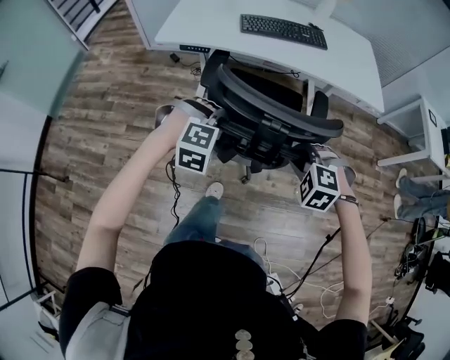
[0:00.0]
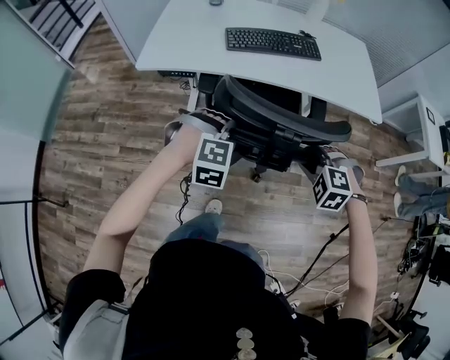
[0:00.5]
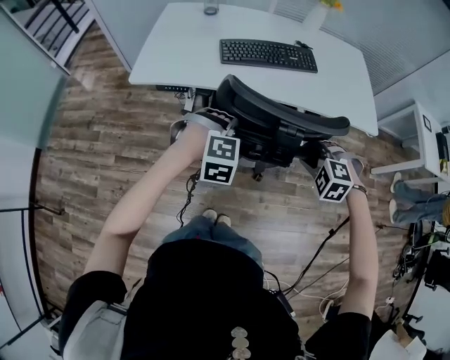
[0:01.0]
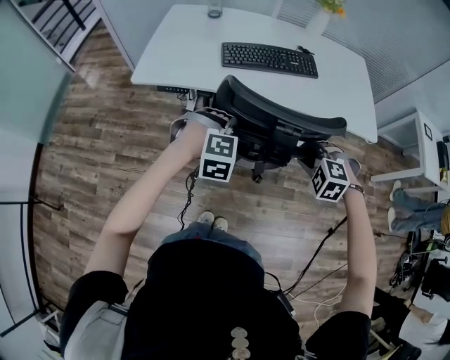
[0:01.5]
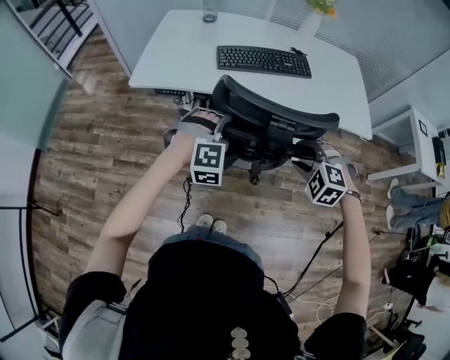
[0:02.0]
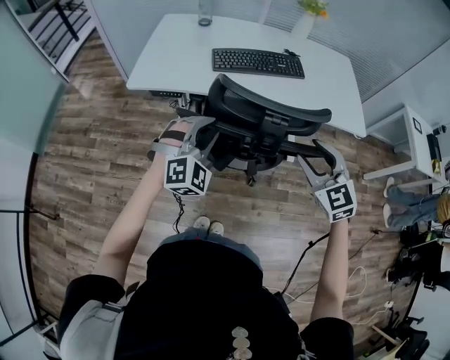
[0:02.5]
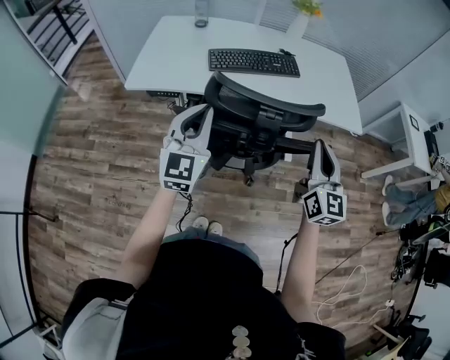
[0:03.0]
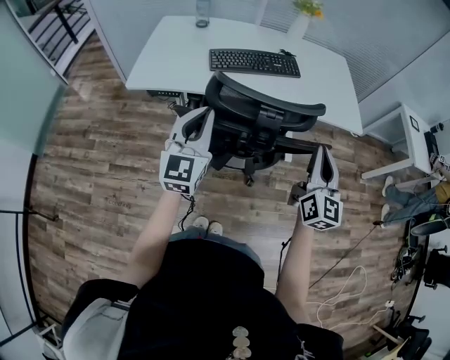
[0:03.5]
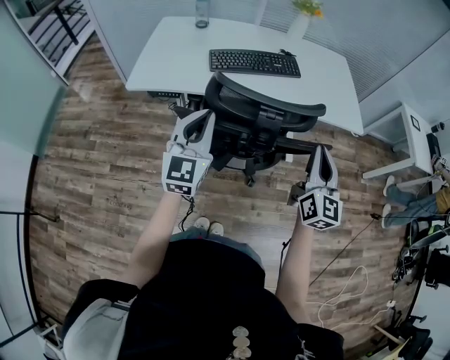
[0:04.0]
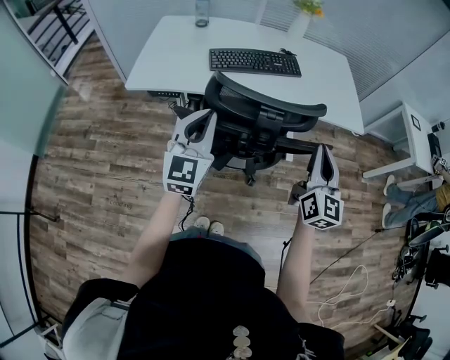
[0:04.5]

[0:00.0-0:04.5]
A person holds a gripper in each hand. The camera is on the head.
0:00.0 to 0:02.0: The two grippers go about 20 cm forward. The right gripper opens up.
0:02.0 to 0:04.5: The right gripper shifts about 15 cm upward and to the right, points its fingers some 60 degrees further upward, and closes. The left gripper moves upward, approximately 15 cm, twists about 60 degrees counterclockwise, seen from behind, and closes up.

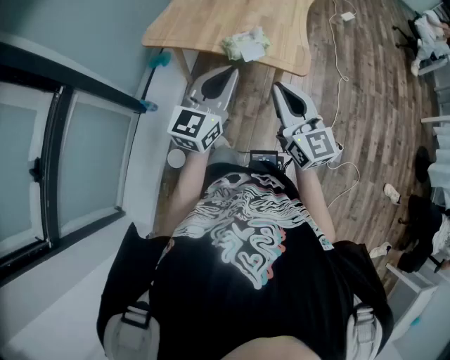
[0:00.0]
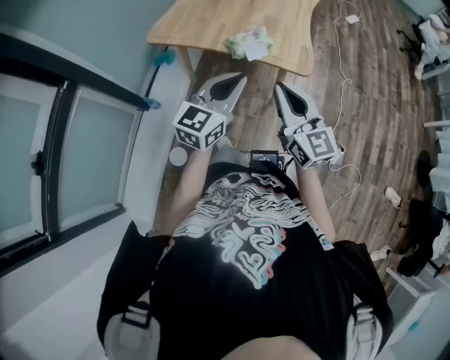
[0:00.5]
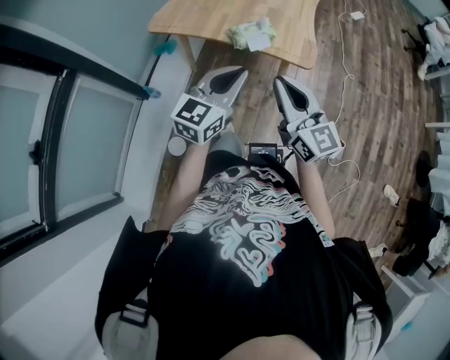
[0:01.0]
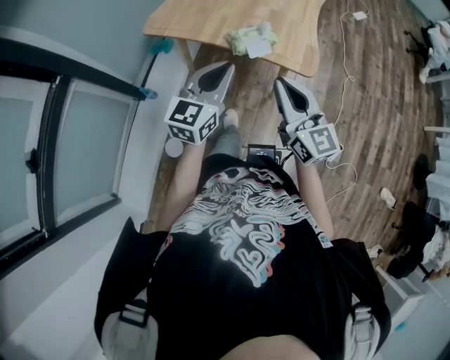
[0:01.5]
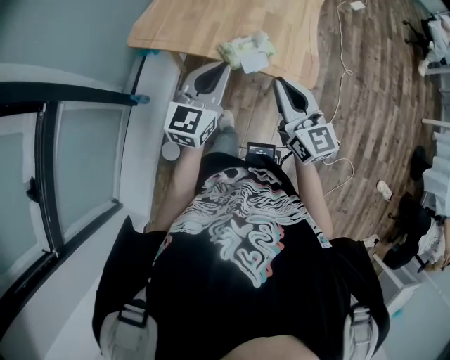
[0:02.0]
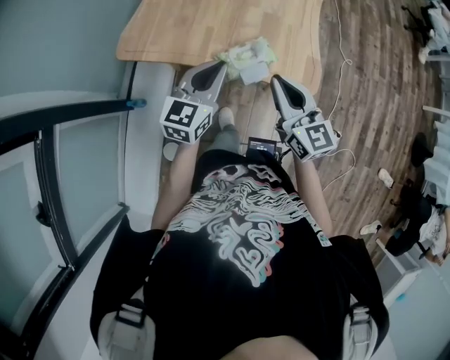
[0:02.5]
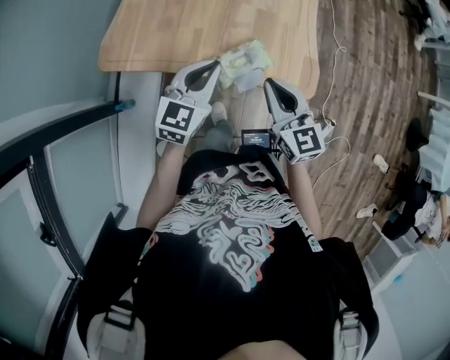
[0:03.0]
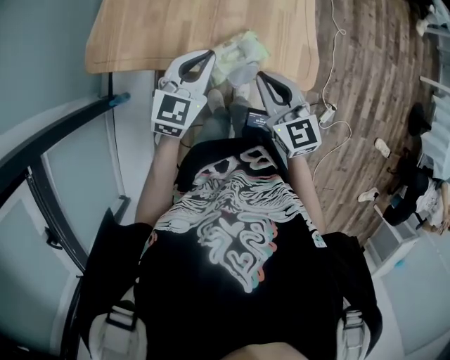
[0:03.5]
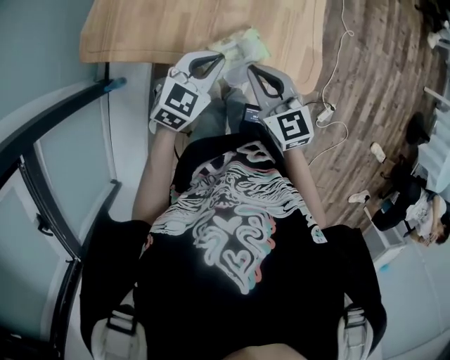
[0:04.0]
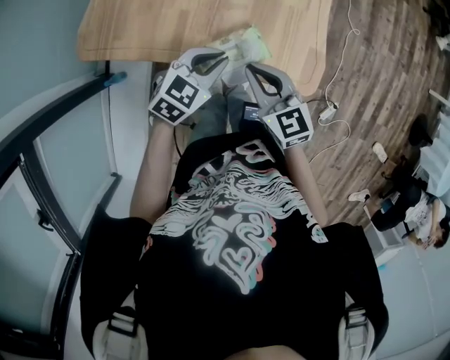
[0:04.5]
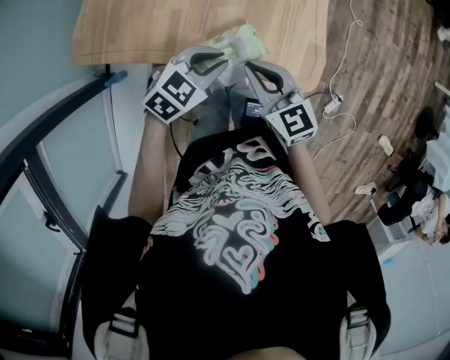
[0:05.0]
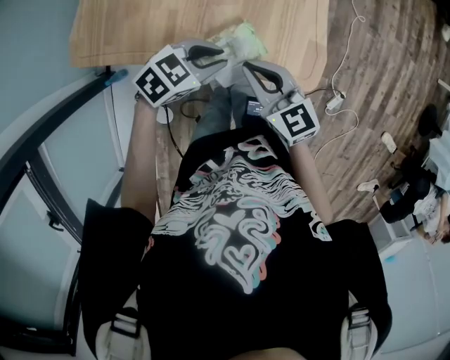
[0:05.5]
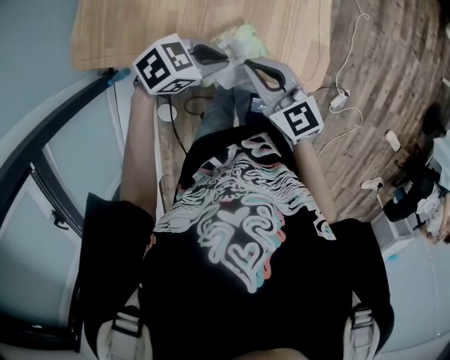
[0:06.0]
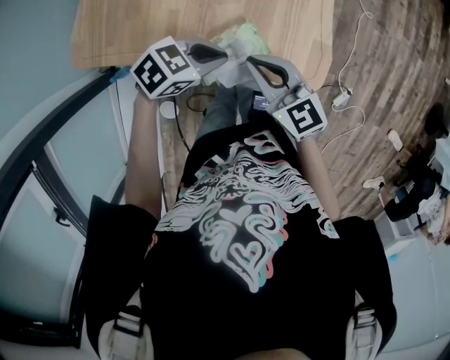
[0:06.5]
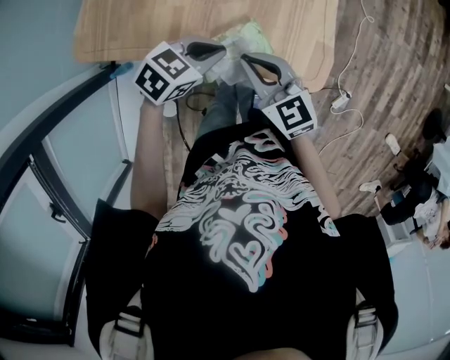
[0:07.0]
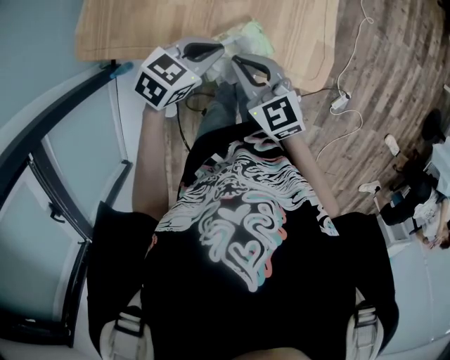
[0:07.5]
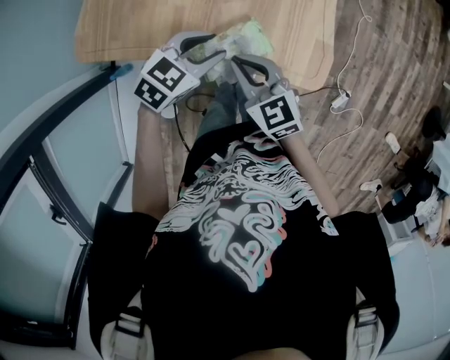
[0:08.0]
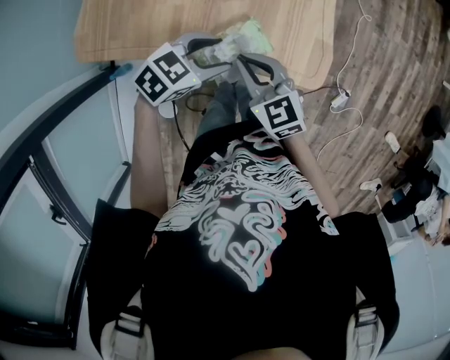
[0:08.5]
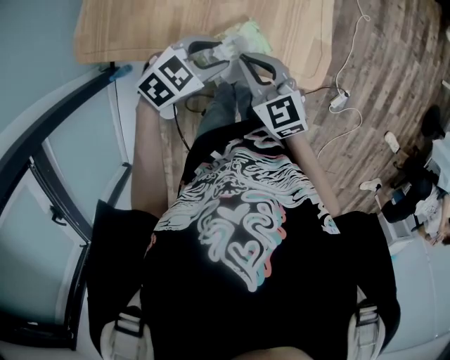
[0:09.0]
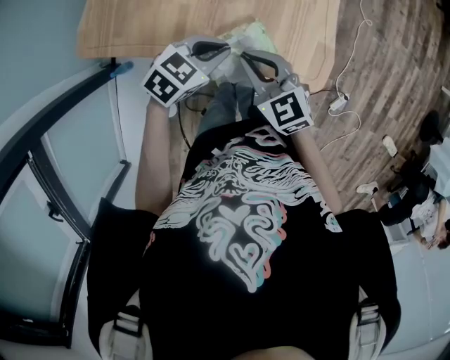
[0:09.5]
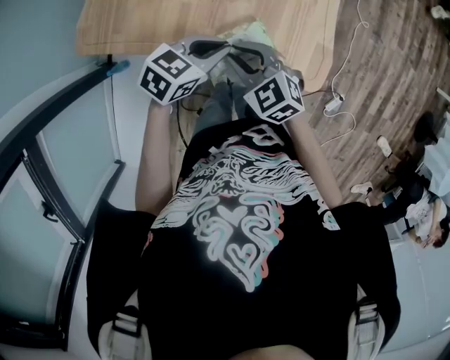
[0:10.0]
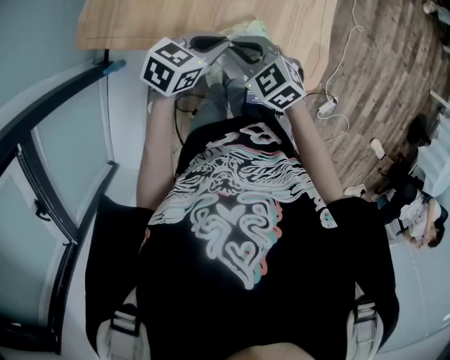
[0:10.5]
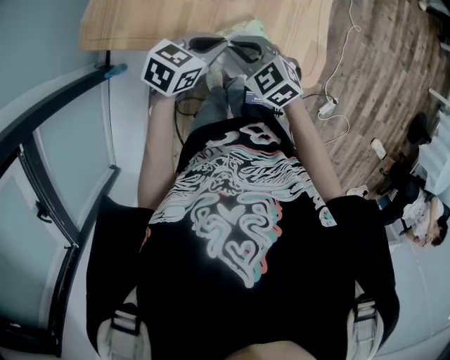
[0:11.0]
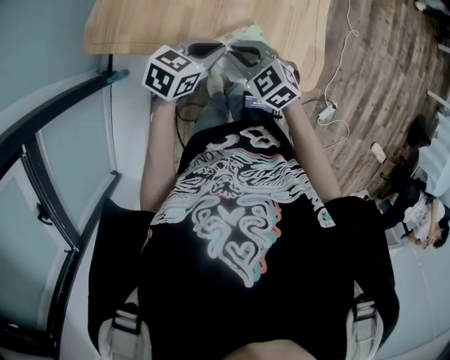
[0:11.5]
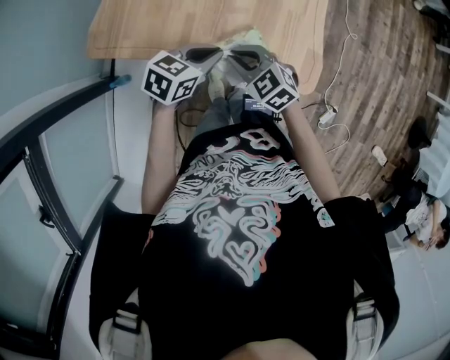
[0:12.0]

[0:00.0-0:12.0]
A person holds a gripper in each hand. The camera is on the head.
0:00.0 to 0:02.0: The left gripper moves forward and downward, some 15 cm, while the right gripper shifts approximately 15 cm forward.
0:02.0 to 0:04.0: The left gripper goes about 20 cm downward and forward, and rotates some 40 degrees. The right gripper goes about 20 cm forward and downward, and rotates approximately 20 degrees.
0:04.0 to 0:06.0: The left gripper changes place by some 5 cm, and rotates some 40 degrees.
0:06.0 to 0:08.0: The left gripper turns by some 20 degrees, and opens its fingers.
0:08.0 to 0:10.0: The right gripper rotates some 20 degrees, while the left gripper closes up.
0:10.0 to 0:12.0: The grippers make only small movements.

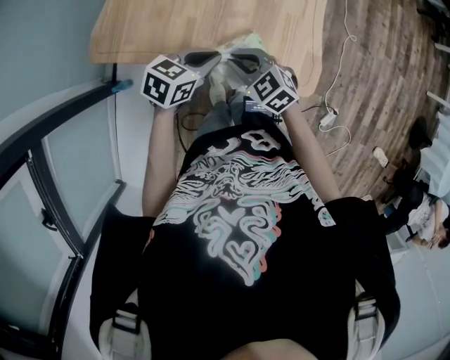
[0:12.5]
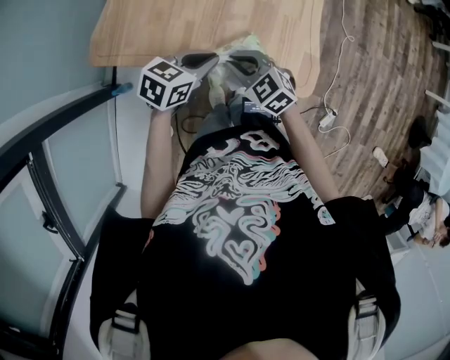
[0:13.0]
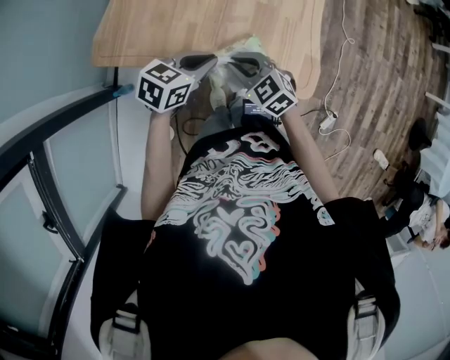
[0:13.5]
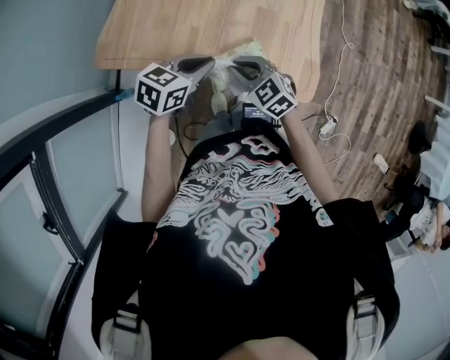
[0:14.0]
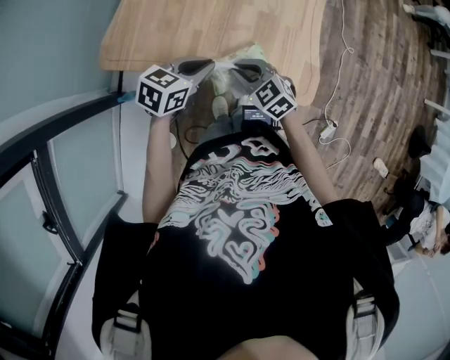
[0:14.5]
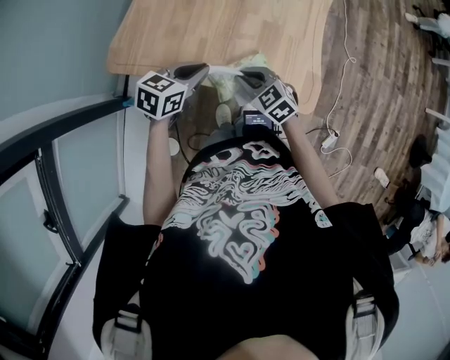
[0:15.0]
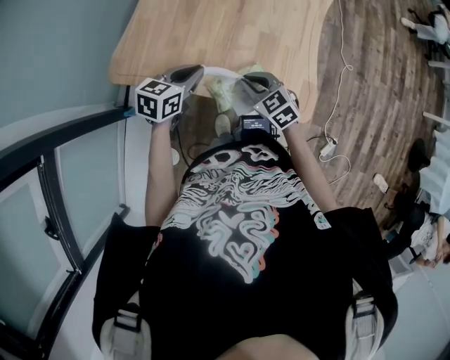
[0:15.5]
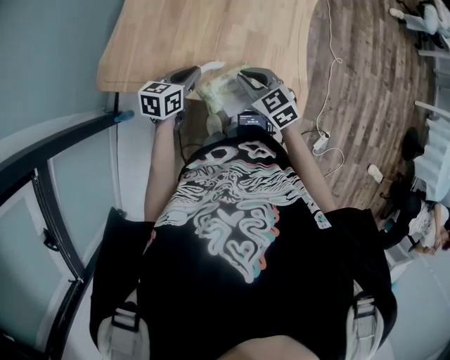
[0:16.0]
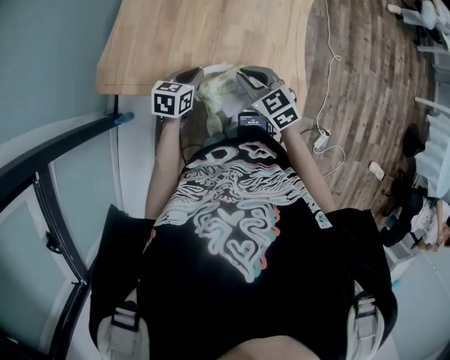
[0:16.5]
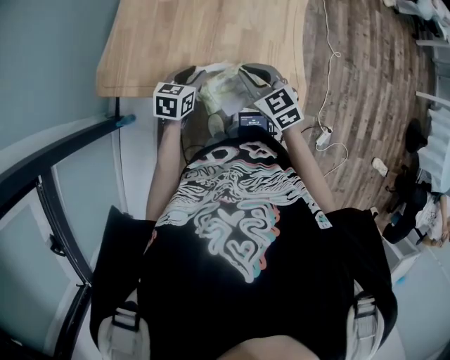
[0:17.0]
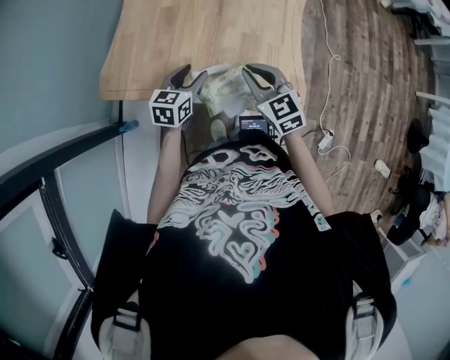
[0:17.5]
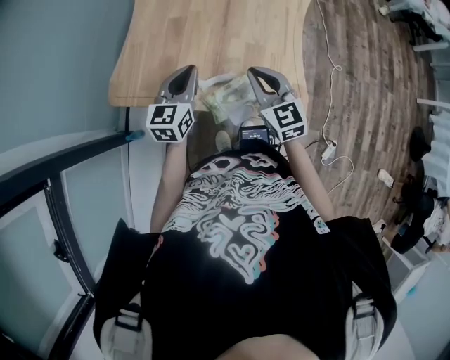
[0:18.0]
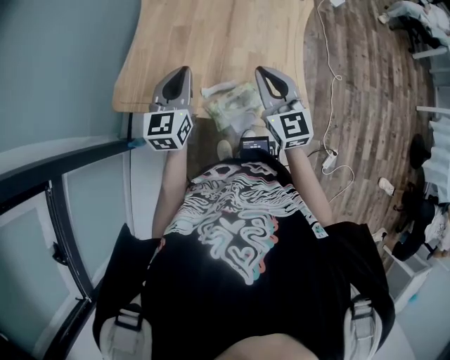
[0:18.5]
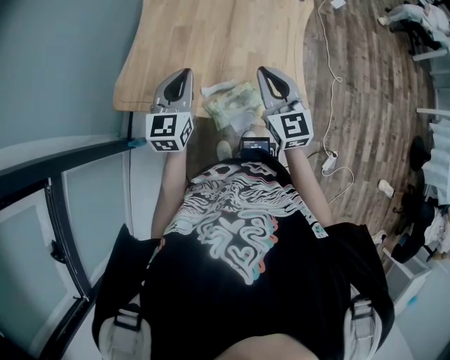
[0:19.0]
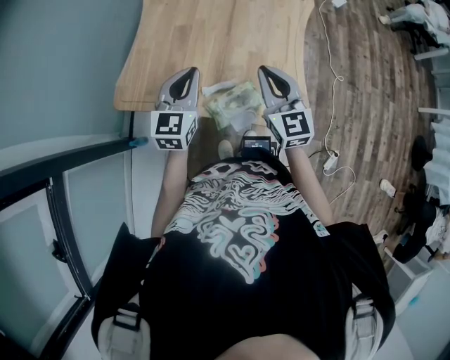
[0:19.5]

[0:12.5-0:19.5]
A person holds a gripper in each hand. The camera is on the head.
0:12.5 to 0:14.5: The grippers stay close to where they were, moving slightly.
0:14.5 to 0:16.0: The left gripper shifts about 5 cm forward. The right gripper ends up about 5 cm from where it was.
0:16.0 to 0:17.5: The right gripper shifts some 5 cm upward. Meanwhile the left gripper opens its fingers.
0:17.5 to 0:19.5: The right gripper travels upward by roughly 10 cm, and turns by roughly 20 degrees. Meanwhile the left gripper moves upward, roughly 15 cm, swivels approximately 30 degrees, and closes.

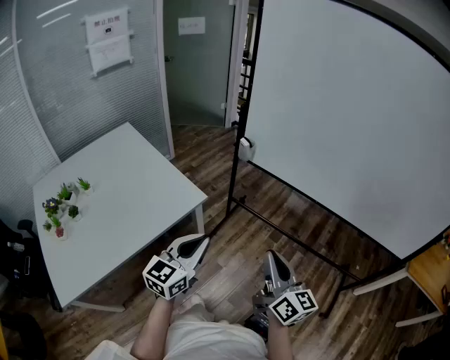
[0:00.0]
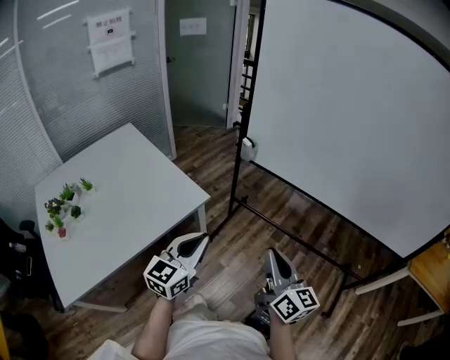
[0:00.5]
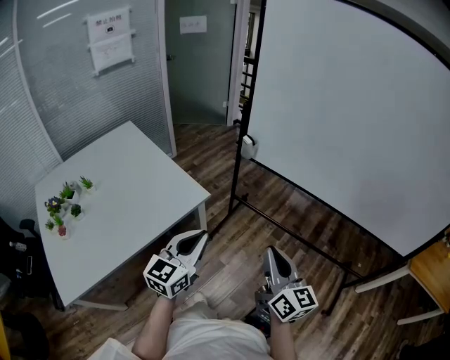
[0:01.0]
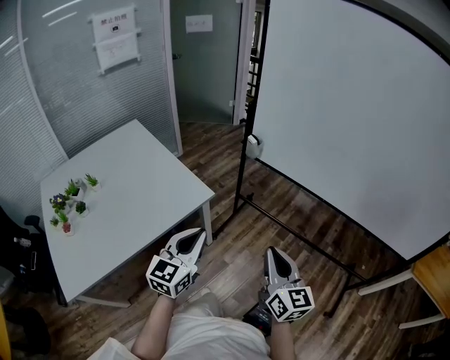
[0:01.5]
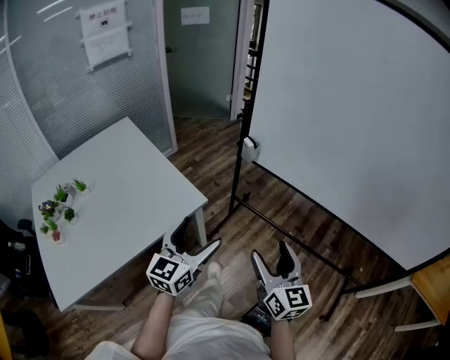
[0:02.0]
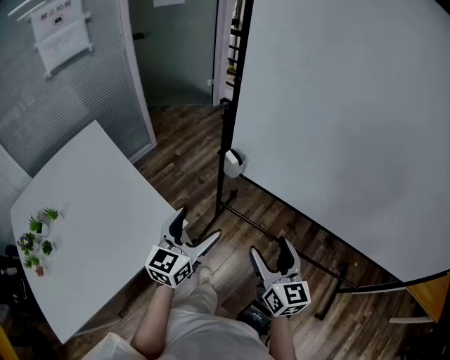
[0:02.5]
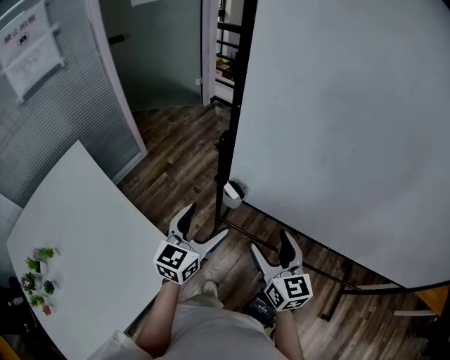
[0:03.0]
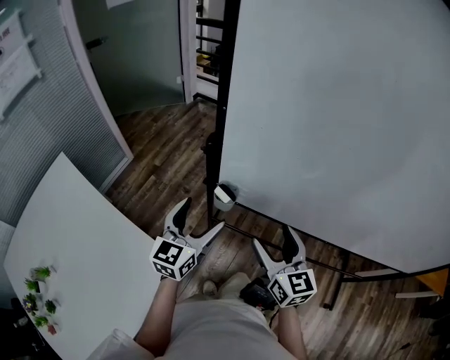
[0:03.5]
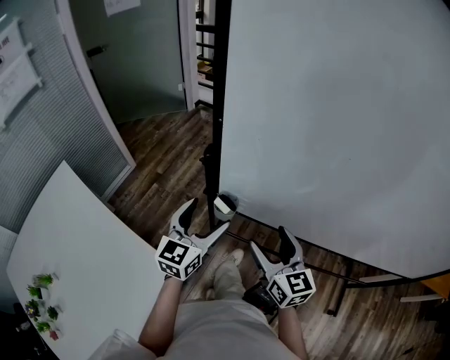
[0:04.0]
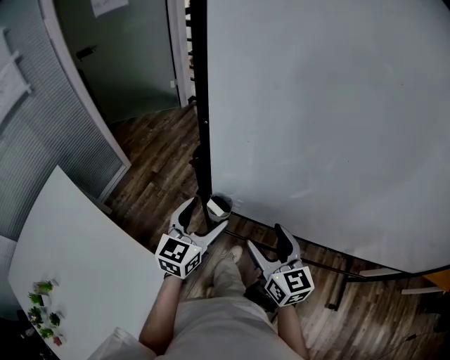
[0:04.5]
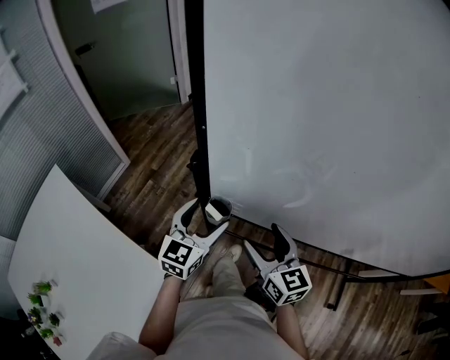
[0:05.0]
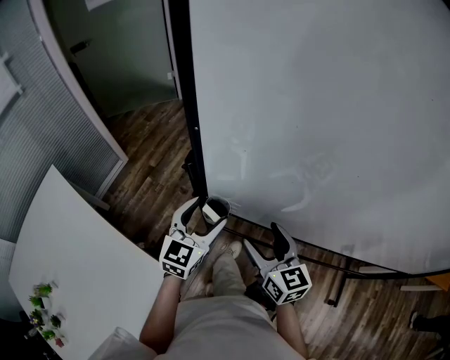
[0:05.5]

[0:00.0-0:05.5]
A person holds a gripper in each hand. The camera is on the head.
0:00.0 to 0:02.0: Both grippers travel together forward, roughly 10 cm. The left gripper opens its fingers, while the right gripper opens its fingers.
0:02.0 to 0:03.5: Both grippers move forward, approximately 40 cm.
0:03.5 to 0:05.5: Both grippers move forward, approximately 5 cm.
